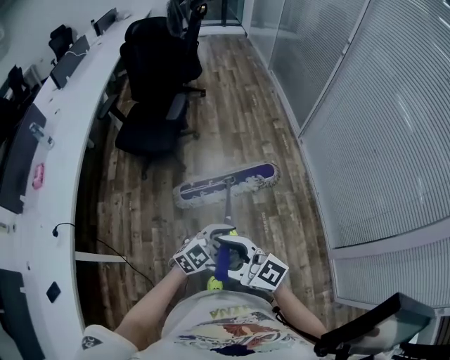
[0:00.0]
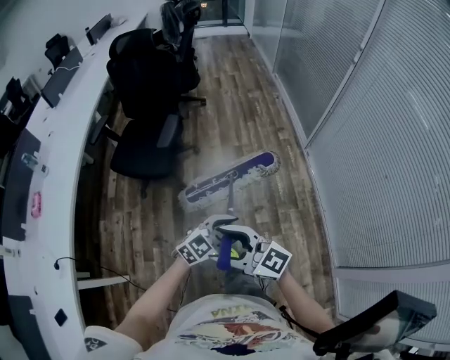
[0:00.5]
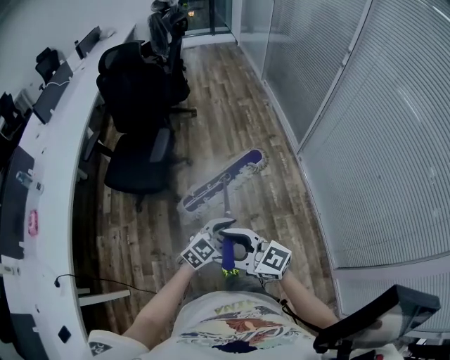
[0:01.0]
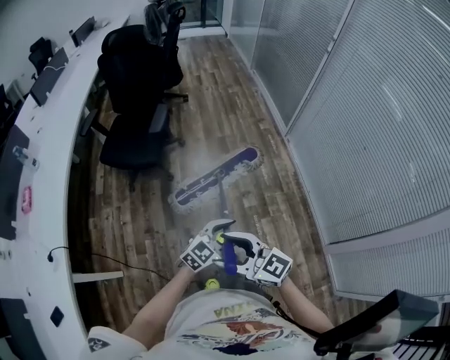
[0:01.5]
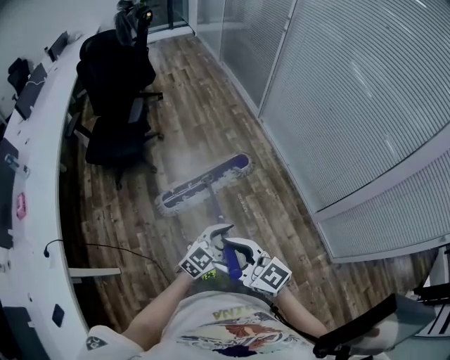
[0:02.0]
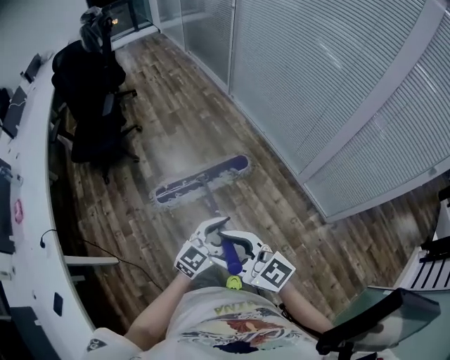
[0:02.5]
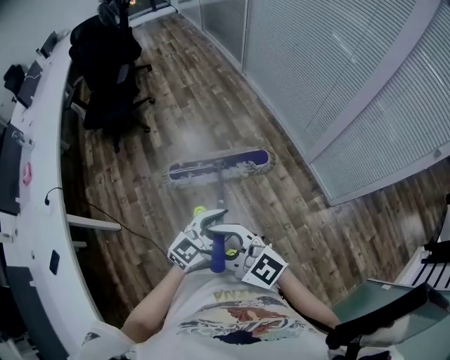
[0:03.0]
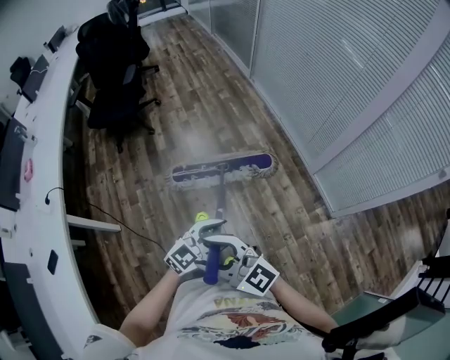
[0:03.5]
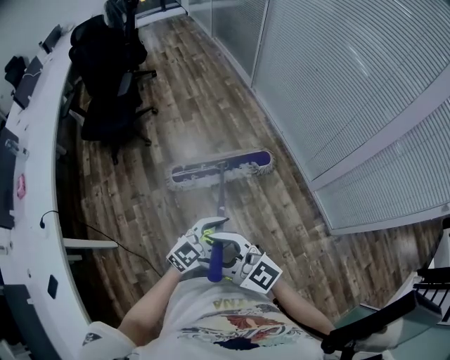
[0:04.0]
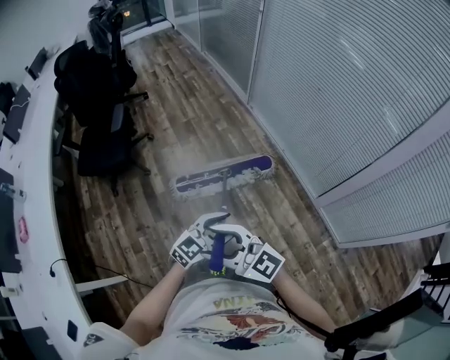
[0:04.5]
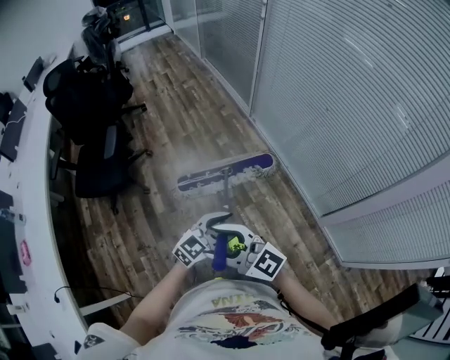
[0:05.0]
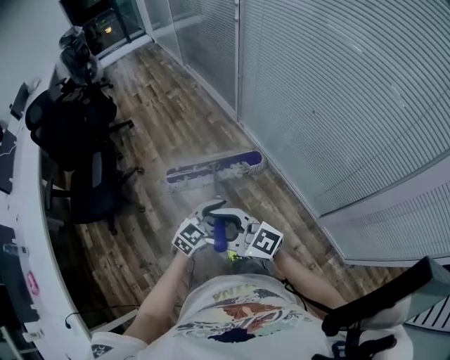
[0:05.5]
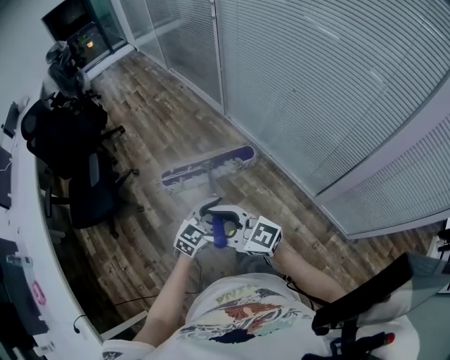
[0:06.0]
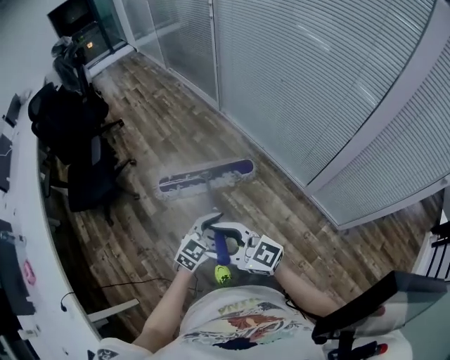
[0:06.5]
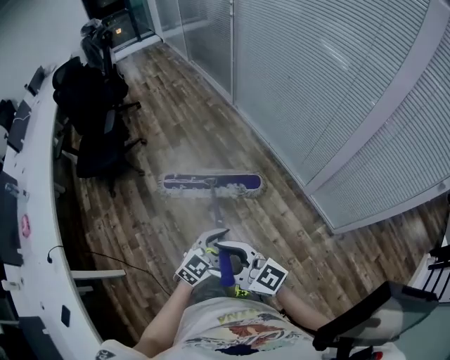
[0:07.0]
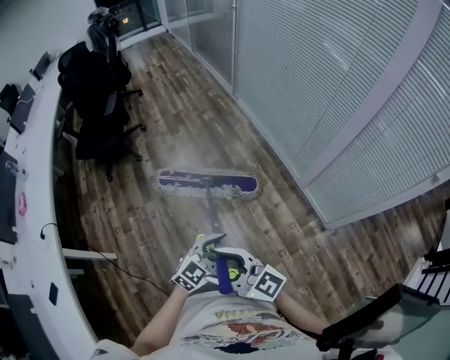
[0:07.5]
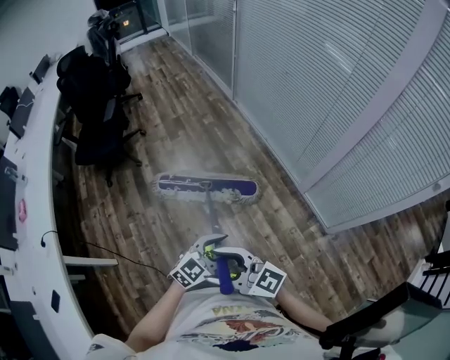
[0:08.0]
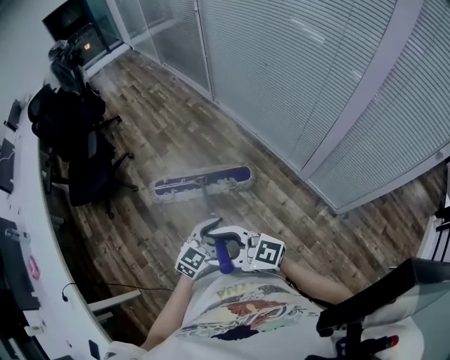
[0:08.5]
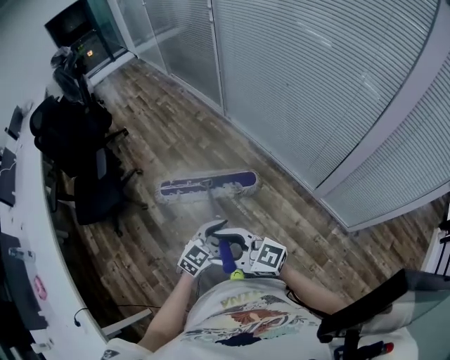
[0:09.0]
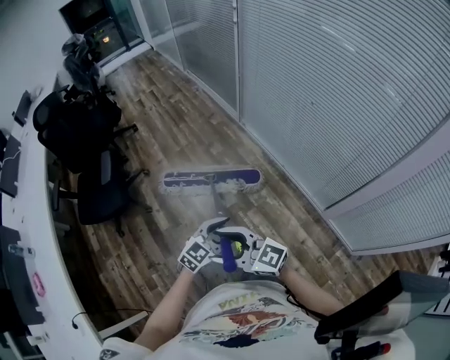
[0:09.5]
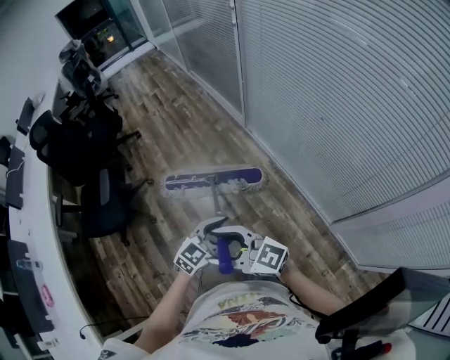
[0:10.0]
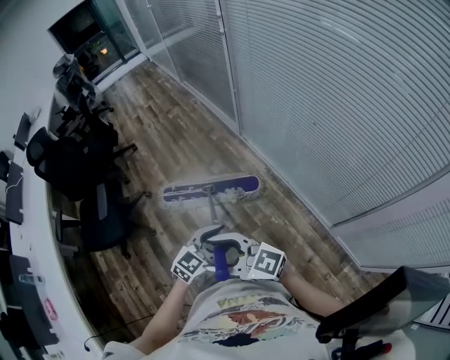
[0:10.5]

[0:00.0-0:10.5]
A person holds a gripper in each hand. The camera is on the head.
0.0 to 2.0 s: The right gripper rotates about 20 degrees.
8.5 to 10.5 s: The two grippers travel together, about 50 cm.

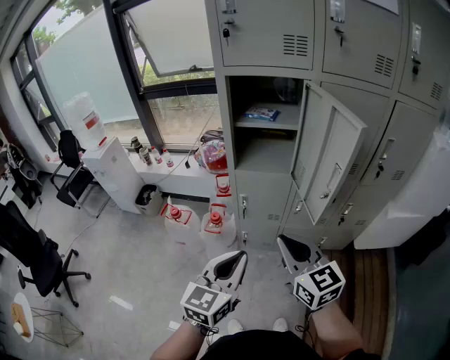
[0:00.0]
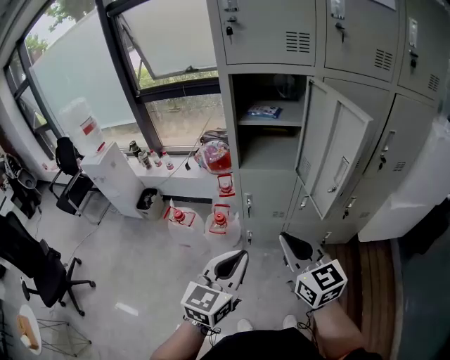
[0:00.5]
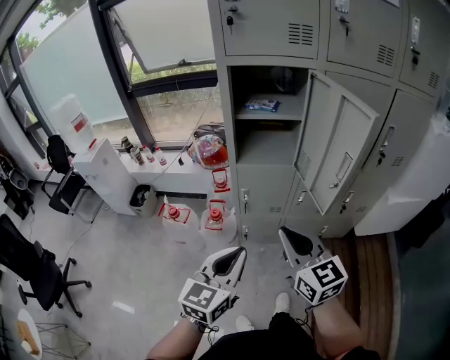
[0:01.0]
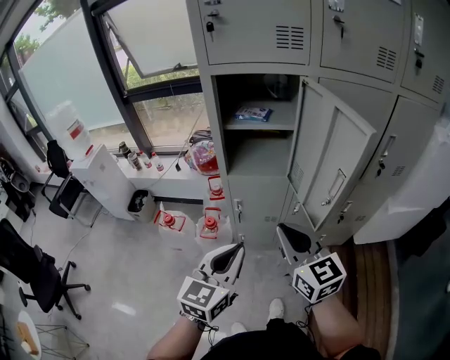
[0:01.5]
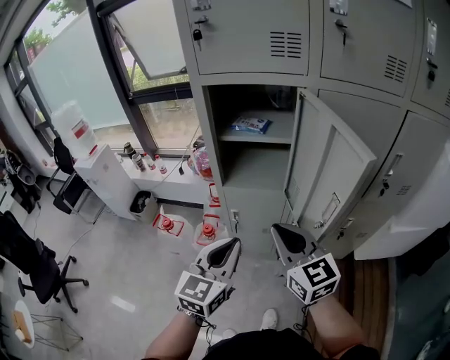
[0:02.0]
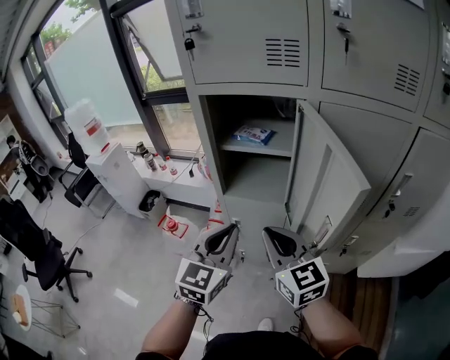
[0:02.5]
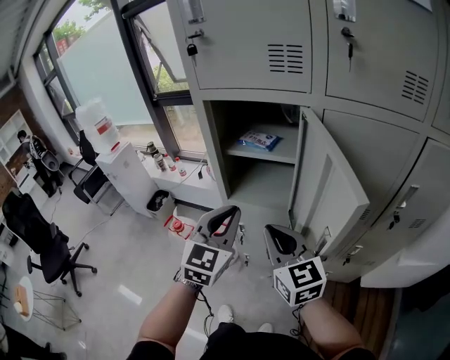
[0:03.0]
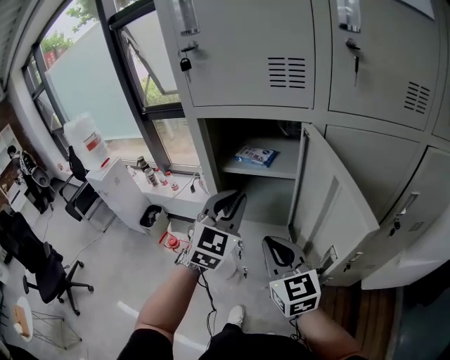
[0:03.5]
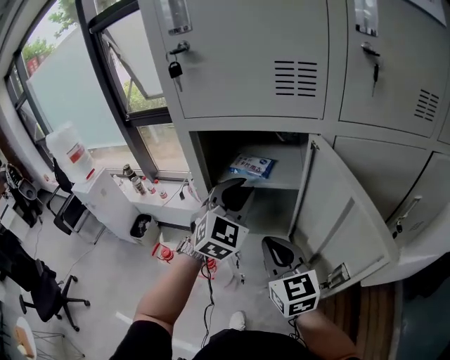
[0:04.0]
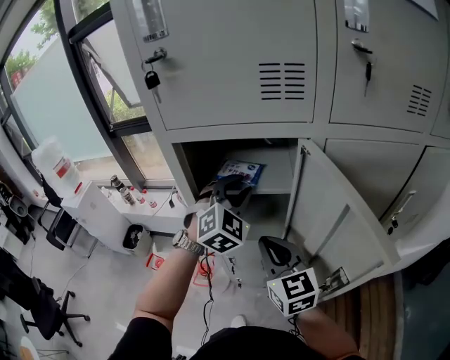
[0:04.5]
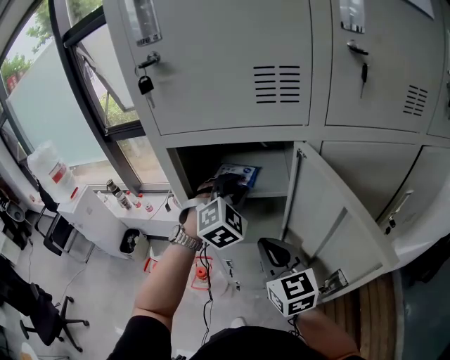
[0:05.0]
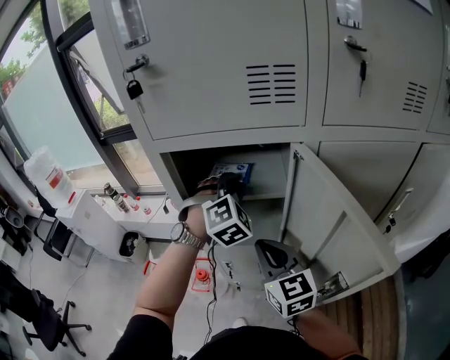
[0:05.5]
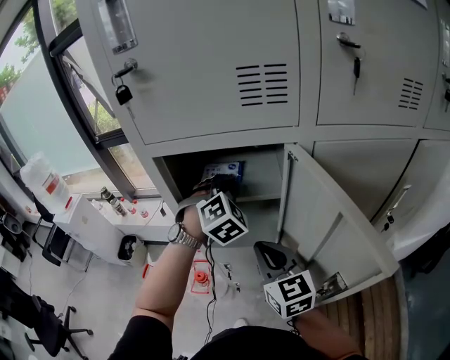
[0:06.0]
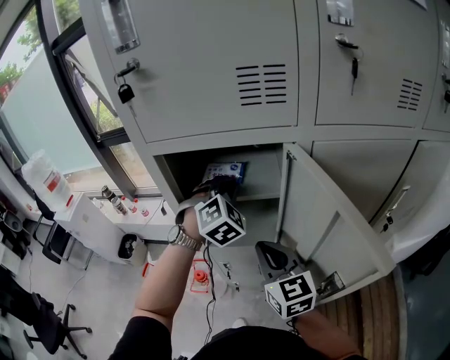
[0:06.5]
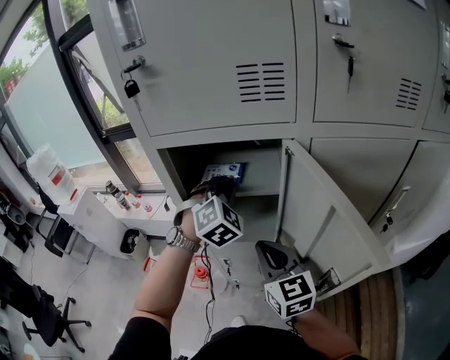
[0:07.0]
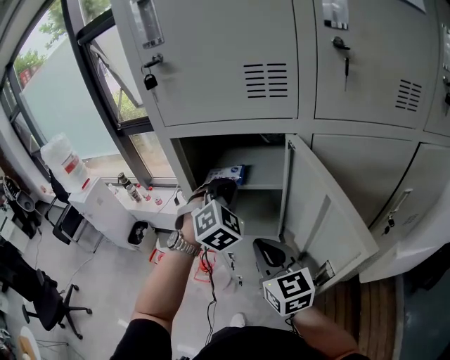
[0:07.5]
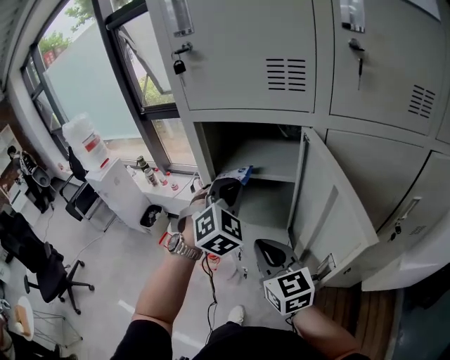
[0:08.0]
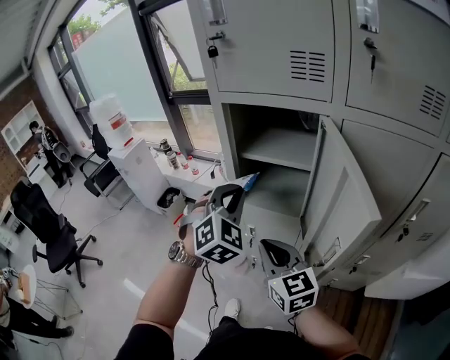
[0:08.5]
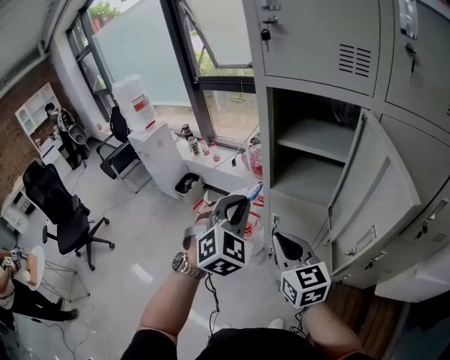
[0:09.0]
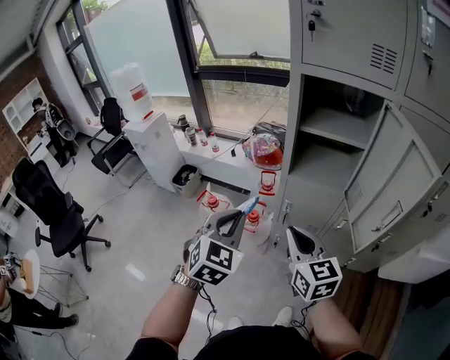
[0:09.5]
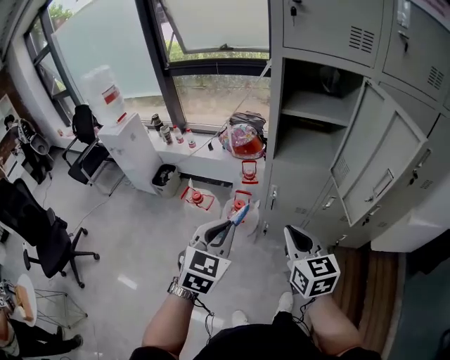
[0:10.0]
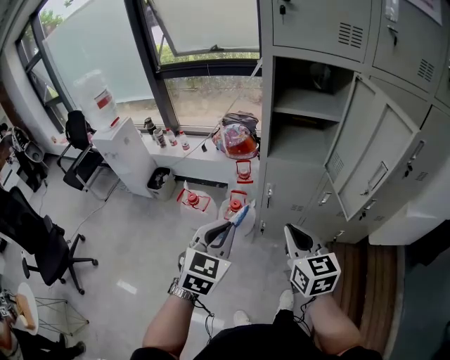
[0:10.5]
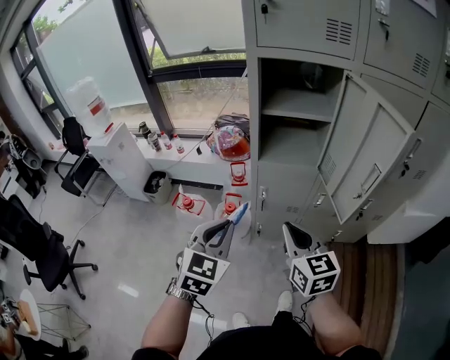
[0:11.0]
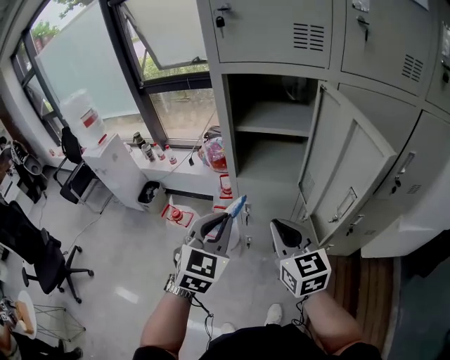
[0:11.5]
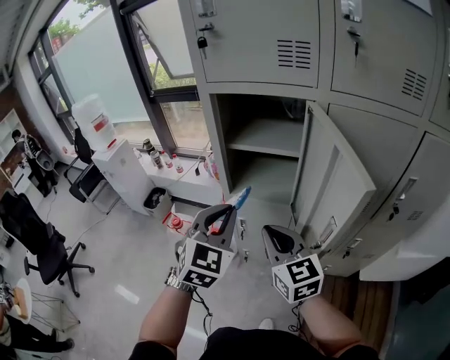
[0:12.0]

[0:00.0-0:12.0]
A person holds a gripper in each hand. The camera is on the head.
0.0 to 2.0 s: The two grippers go approximately 10 cm forward.
2.0 to 4.0 s: The left gripper travels forward by approximately 25 cm, and changes its angle by roughly 40 degrees, while the right gripper goes approximately 15 cm forward.
4.0 to 6.0 s: The left gripper is displaced forward by roughly 10 cm, and swivels roughly 30 degrees.
6.0 to 8.0 s: The left gripper moves backward and to the left, roughly 15 cm. The right gripper moves backward, roughly 5 cm.
8.0 to 10.0 s: The left gripper goes some 40 cm to the left, backward and downward, and turns by some 40 degrees, while the right gripper shifts some 20 cm to the left, backward and downward.
10.0 to 12.0 s: Both grippers move to the right, forward and upward, about 20 cm.

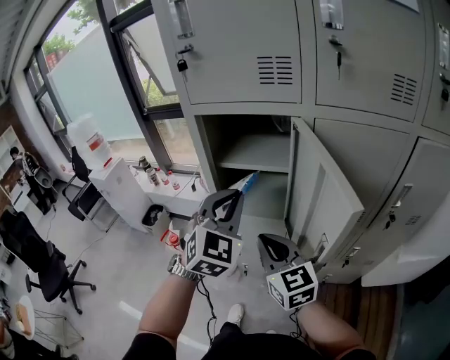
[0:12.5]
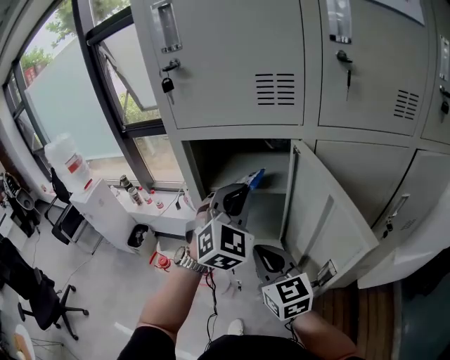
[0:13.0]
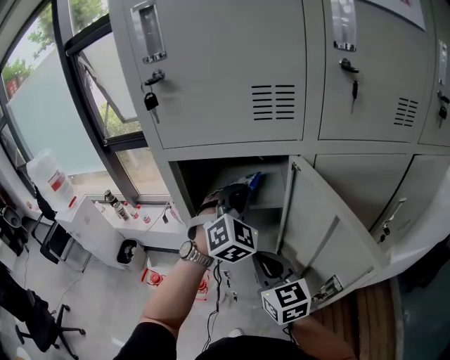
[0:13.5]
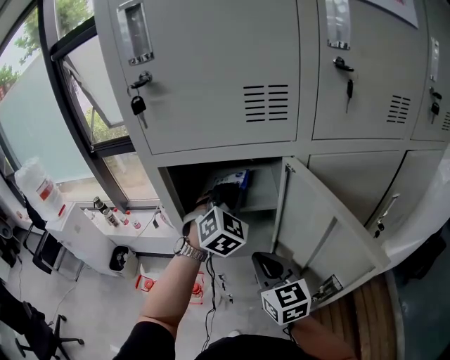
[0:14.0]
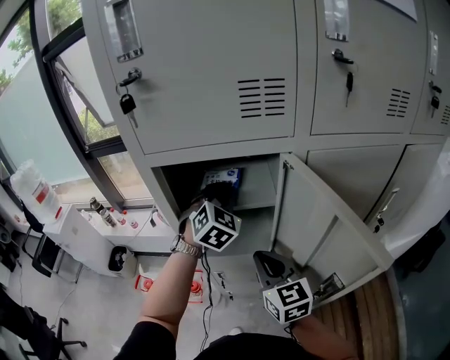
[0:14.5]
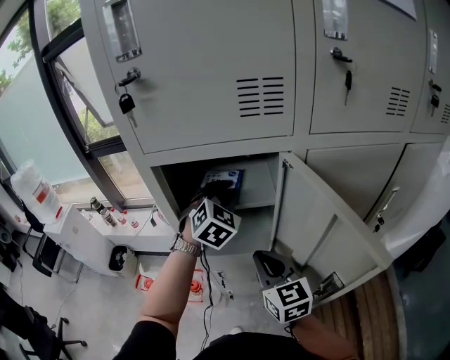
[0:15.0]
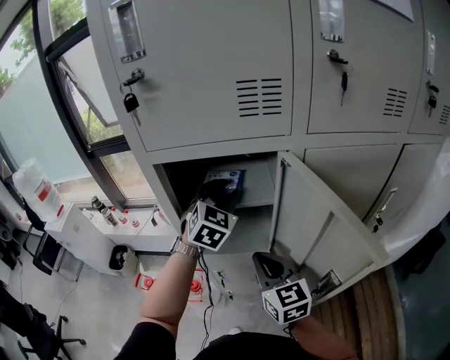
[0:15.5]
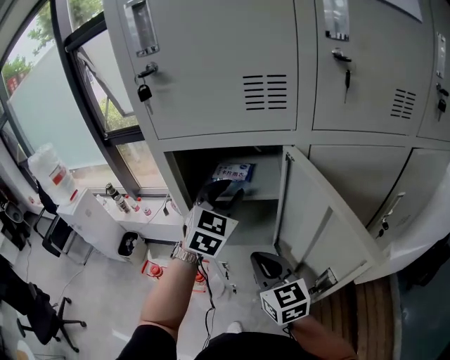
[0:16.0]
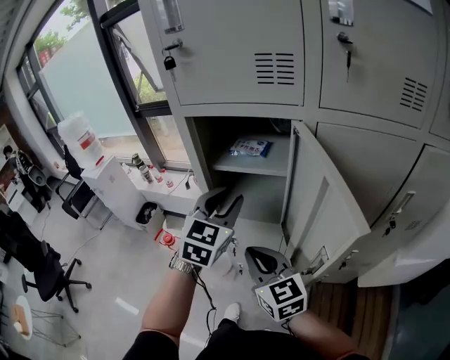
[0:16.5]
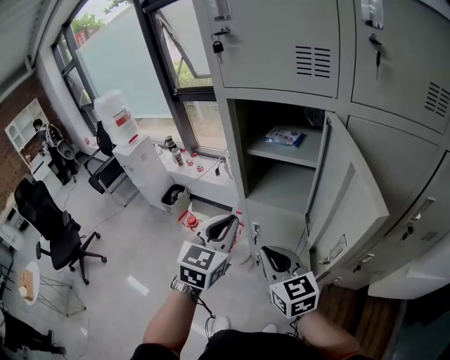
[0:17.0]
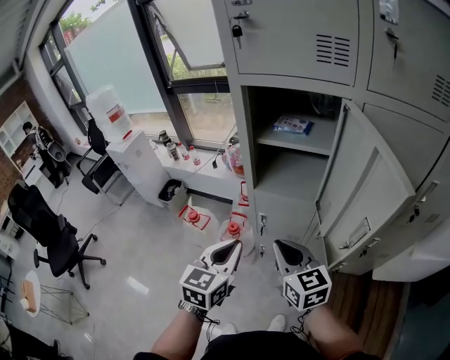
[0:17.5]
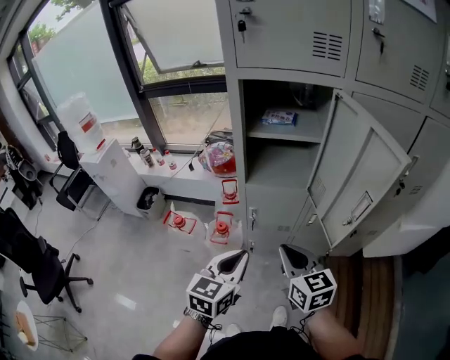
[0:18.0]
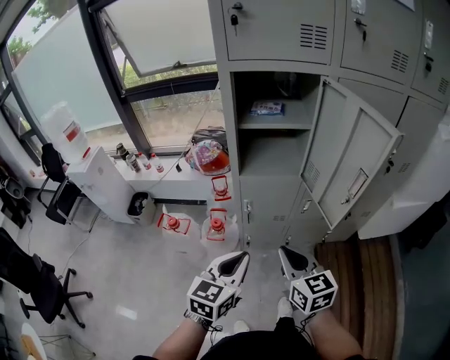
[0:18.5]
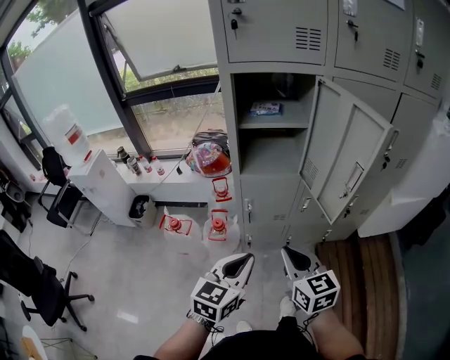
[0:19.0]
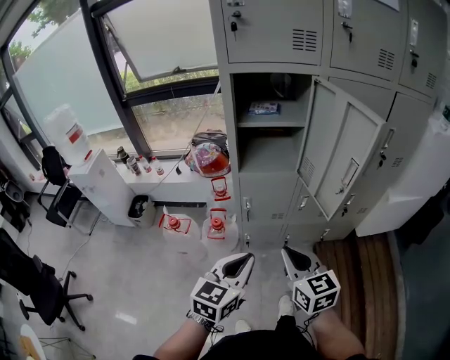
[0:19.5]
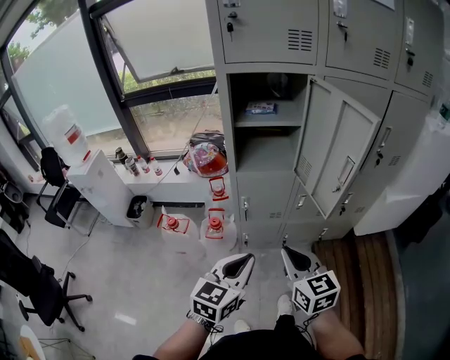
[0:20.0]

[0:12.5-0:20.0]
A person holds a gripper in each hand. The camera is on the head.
12.5 to 14.5 s: The left gripper travels forward by approximately 20 cm, while the right gripper moves forward, roughly 10 cm.
14.5 to 16.5 s: The left gripper goes some 15 cm backward, changes its angle by approximately 30 degrees, and opens, while the right gripper goes some 10 cm backward, and rotates some 20 degrees.
16.5 to 18.0 s: The right gripper is displaced backward and downward by roughly 10 cm. Meanwhile the left gripper travels backward, downward and to the left by about 30 cm, changes its angle by roughly 30 degrees, and closes.
18.0 to 20.0 s: Both grippers travel together backward, some 10 cm.
